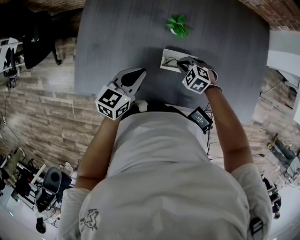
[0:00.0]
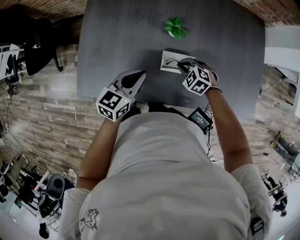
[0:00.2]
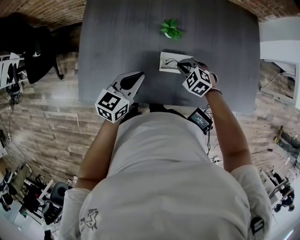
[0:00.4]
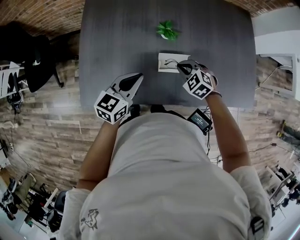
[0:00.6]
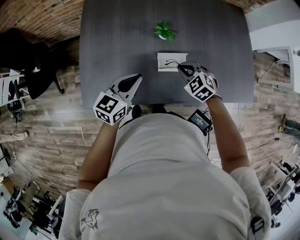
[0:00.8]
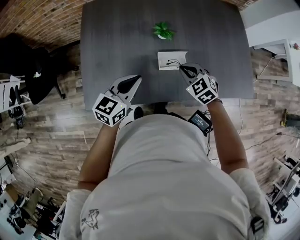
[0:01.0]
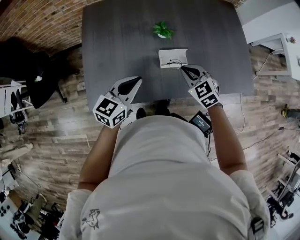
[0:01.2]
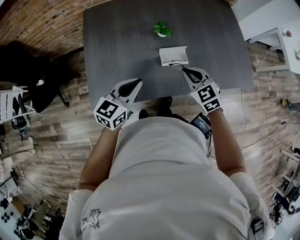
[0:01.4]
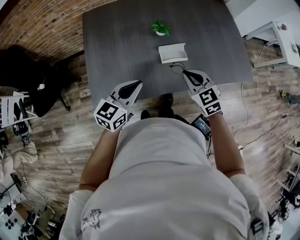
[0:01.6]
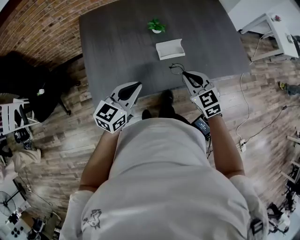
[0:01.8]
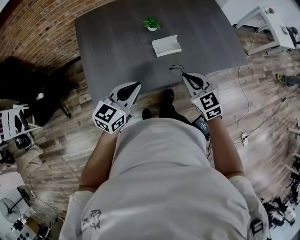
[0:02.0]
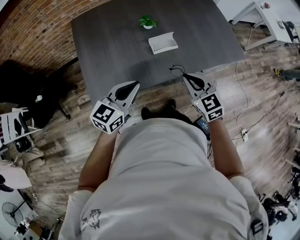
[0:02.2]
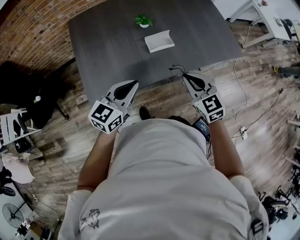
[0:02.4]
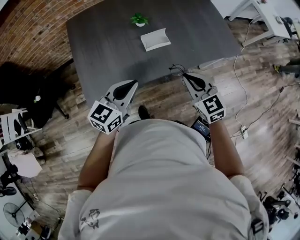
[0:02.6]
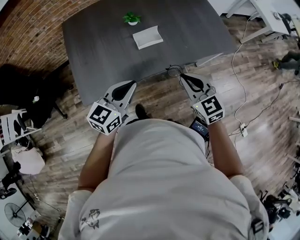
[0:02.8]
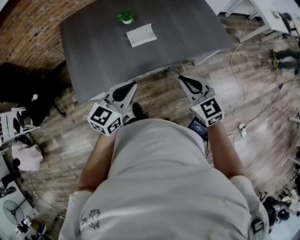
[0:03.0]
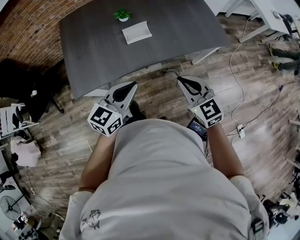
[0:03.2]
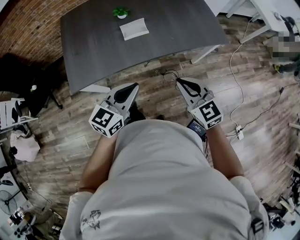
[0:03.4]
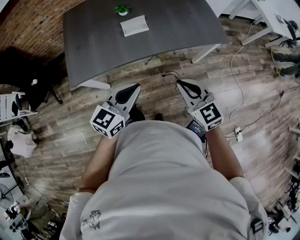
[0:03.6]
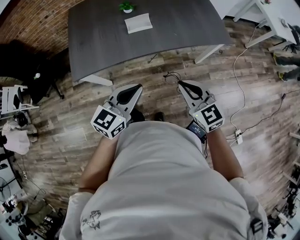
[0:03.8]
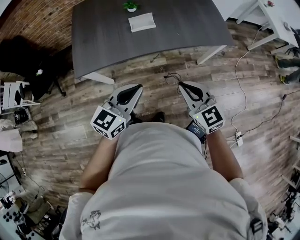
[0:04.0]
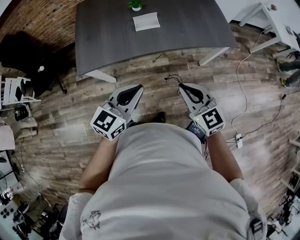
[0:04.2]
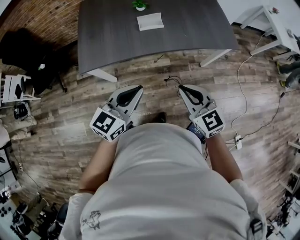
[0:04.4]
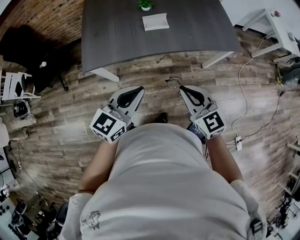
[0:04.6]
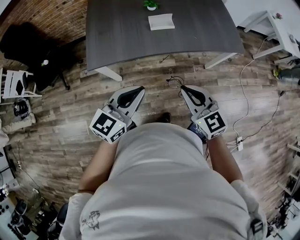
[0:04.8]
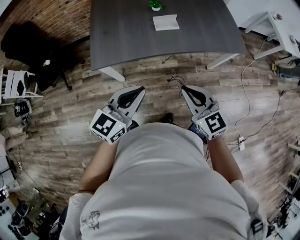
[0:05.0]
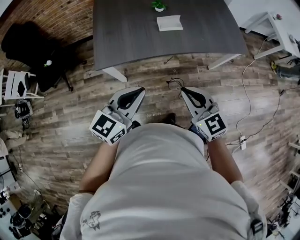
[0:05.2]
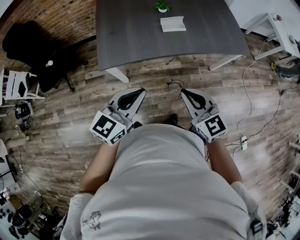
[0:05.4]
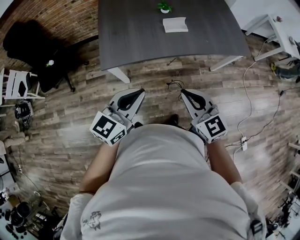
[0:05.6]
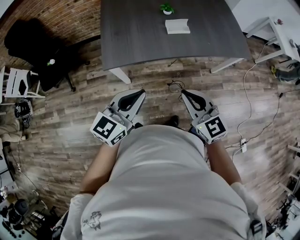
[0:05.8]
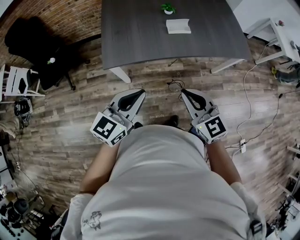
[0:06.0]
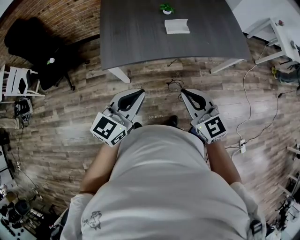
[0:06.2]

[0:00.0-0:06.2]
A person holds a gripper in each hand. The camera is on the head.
0:00.0 to 0:01.6: The right gripper travels upward by approximately 20 cm, and tilts its fingers about 30 degrees upward; the left gripper ends up some 15 cm from where it was, and turns by approximately 20 degrees.
0:01.6 to 0:03.2: The left gripper moves to the right and backward, some 20 cm, while the right gripper goes some 25 cm backward and to the right.
0:03.2 to 0:04.6: The grippers both shift backward by some 10 cm.
0:04.6 to 0:06.2: Both grippers travel together to the left, approximately 15 cm.

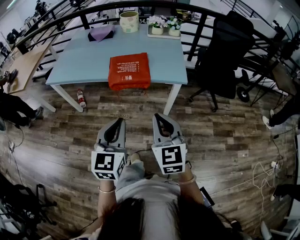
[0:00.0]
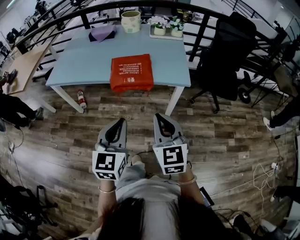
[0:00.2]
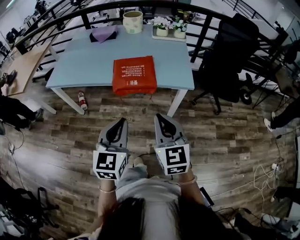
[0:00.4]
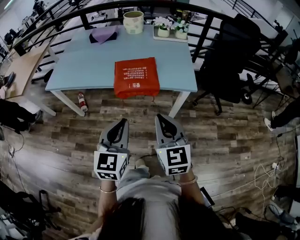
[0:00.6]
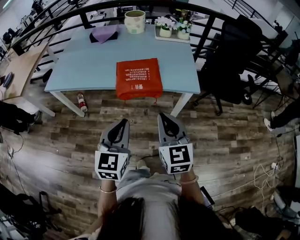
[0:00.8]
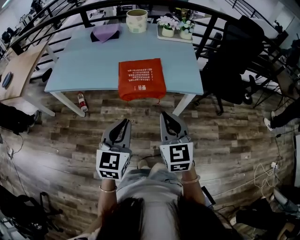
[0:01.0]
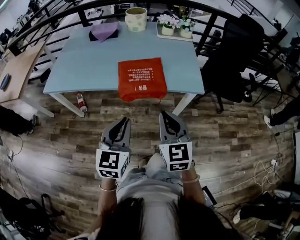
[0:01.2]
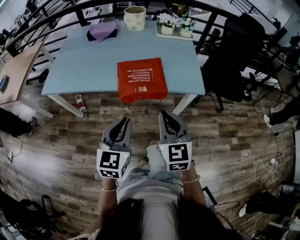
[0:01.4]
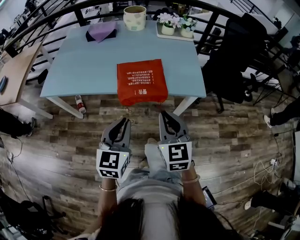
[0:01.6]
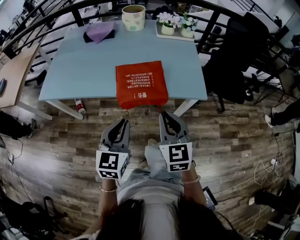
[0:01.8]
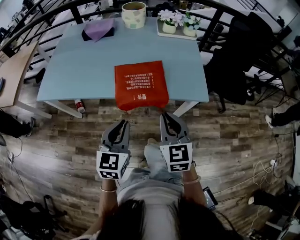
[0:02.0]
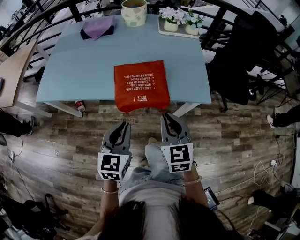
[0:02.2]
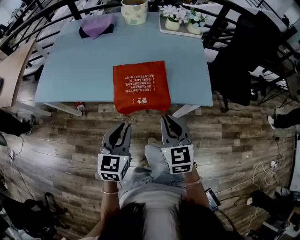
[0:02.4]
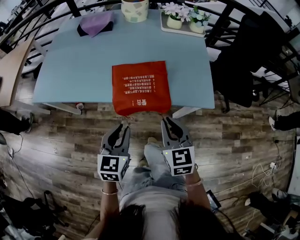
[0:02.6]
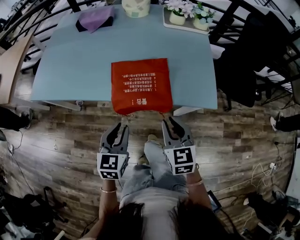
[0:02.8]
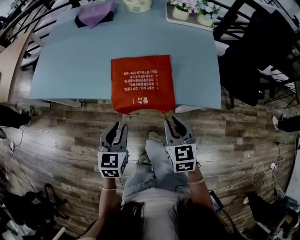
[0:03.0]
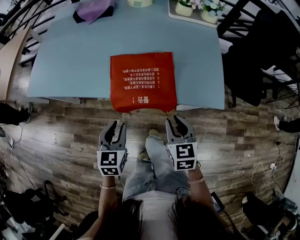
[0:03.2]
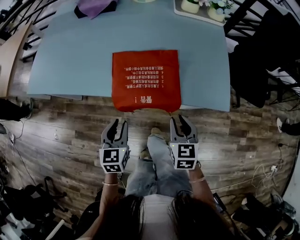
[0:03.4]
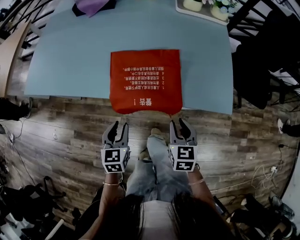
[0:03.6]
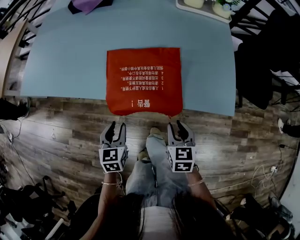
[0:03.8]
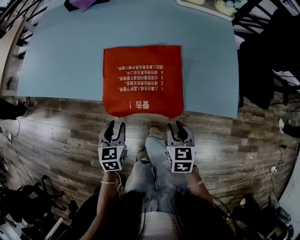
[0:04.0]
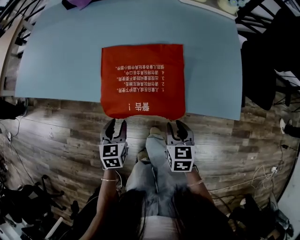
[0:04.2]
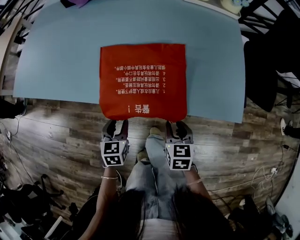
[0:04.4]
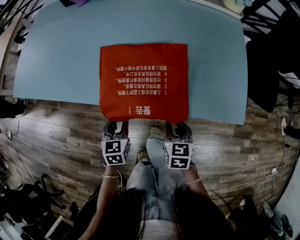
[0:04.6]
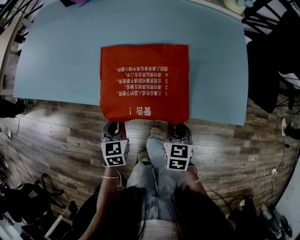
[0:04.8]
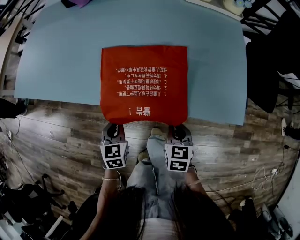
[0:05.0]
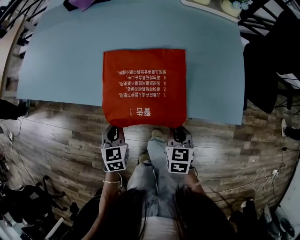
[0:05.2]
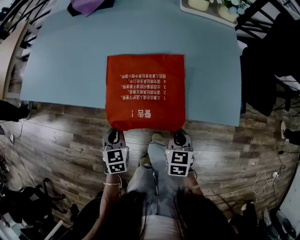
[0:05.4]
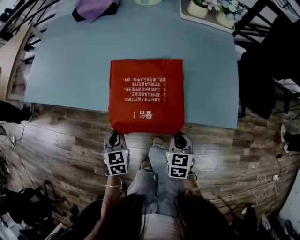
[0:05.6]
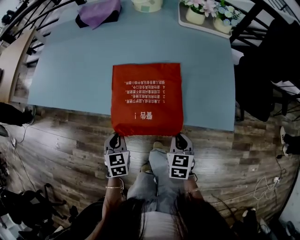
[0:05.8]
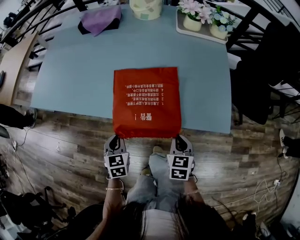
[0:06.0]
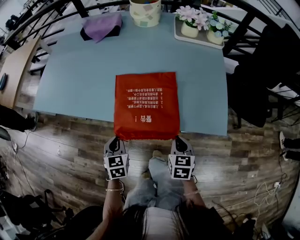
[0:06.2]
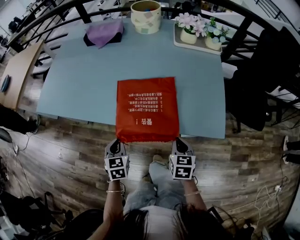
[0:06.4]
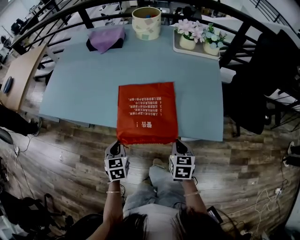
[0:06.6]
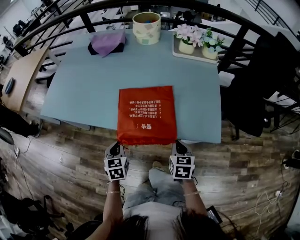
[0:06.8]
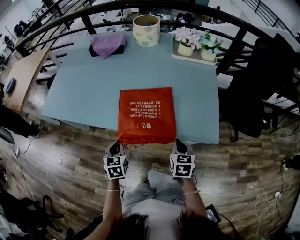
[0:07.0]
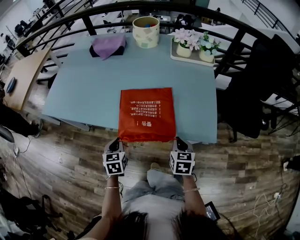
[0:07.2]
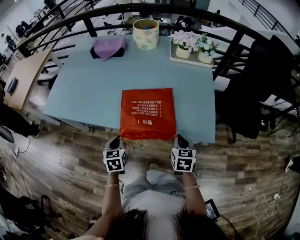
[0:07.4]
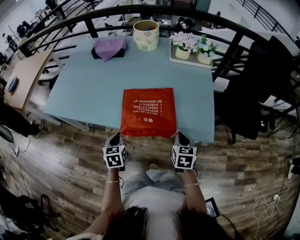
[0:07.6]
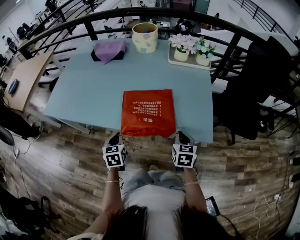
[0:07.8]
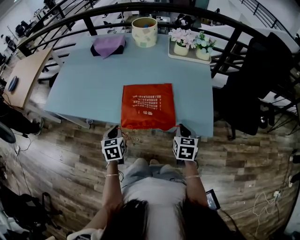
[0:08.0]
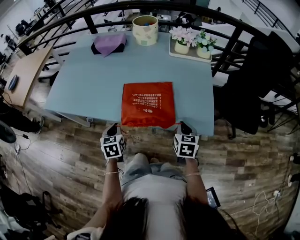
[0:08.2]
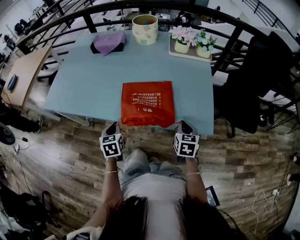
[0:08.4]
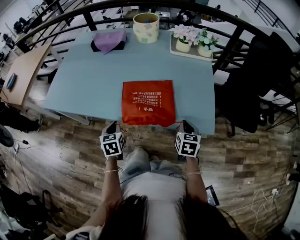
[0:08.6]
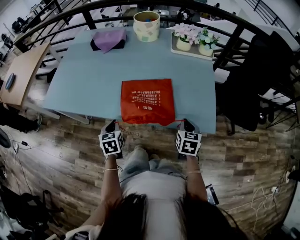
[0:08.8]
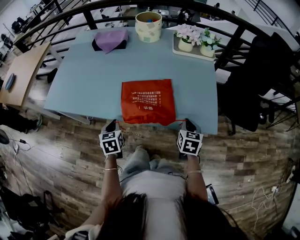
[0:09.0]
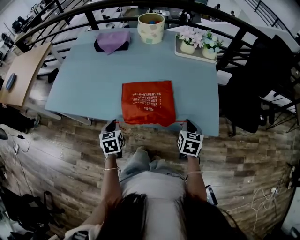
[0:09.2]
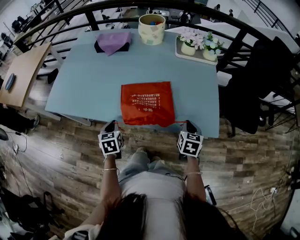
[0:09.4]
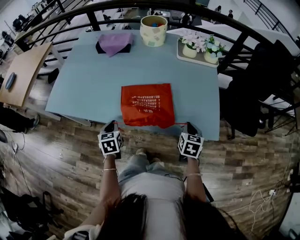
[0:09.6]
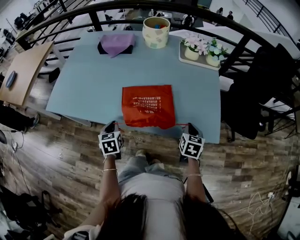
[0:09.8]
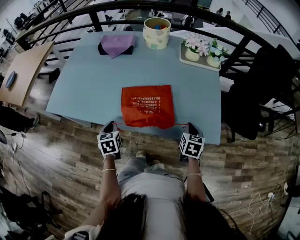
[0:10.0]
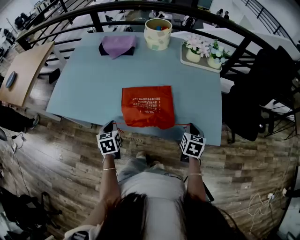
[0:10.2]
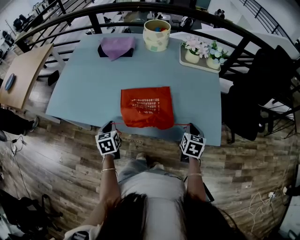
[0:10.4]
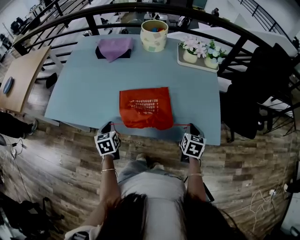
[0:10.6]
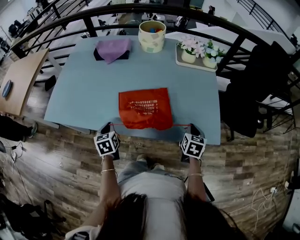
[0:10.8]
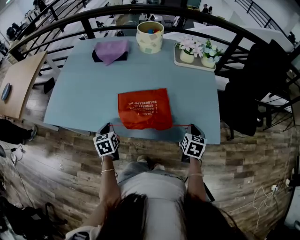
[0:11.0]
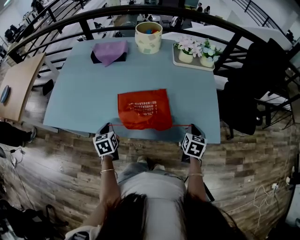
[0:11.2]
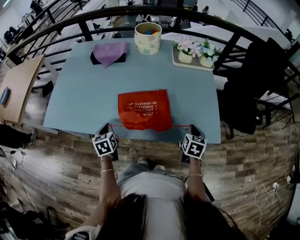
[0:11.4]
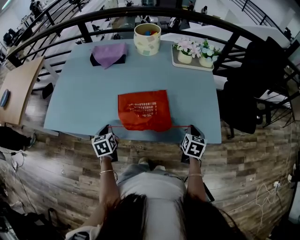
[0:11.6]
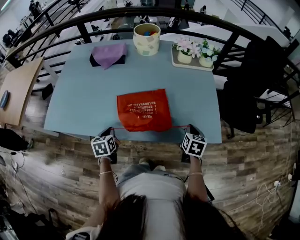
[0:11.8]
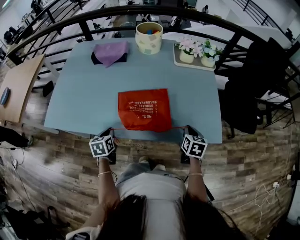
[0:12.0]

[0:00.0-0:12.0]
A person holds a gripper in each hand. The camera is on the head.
0:00.0 to 0:01.6: Both grippers travel together forward and to the left, roughly 20 cm.
0:01.6 to 0:03.0: Both grippers travel together downward and forward, about 20 cm.
0:03.0 to 0:04.4: The grippers both shift downward by approximately 20 cm.
0:04.4 to 0:06.0: The grippers both shift upward by approximately 10 cm. The left gripper closes up; the right gripper closes up.
0:06.0 to 0:07.6: The left gripper is displaced upward by some 5 cm. Meanwhile the right gripper goes about 10 cm upward and to the right.
0:07.6 to 0:09.0: The left gripper ends up approximately 5 cm from where it was.
0:09.0 to 0:10.4: The left gripper moves to the left, roughly 5 cm.
0:10.4 to 0:12.0: The grippers stay close to where they were, moving slightly.

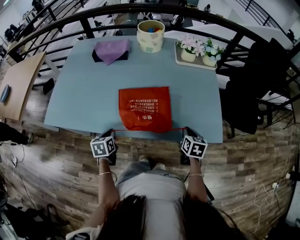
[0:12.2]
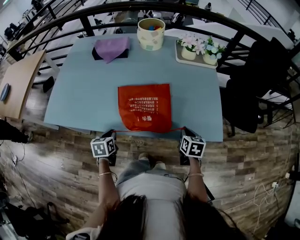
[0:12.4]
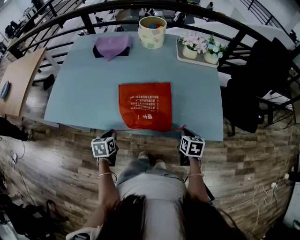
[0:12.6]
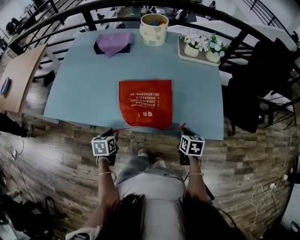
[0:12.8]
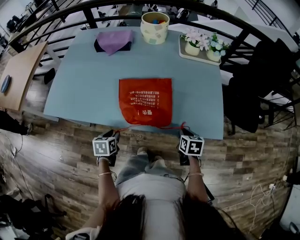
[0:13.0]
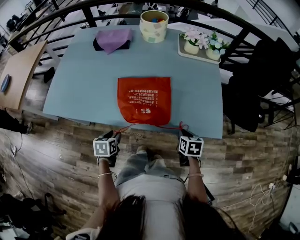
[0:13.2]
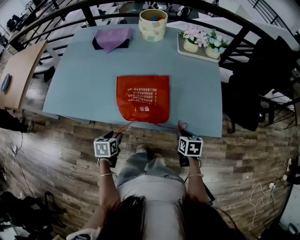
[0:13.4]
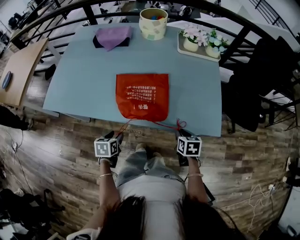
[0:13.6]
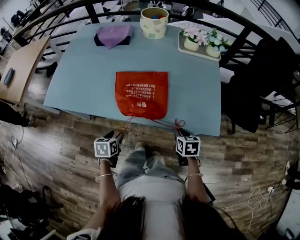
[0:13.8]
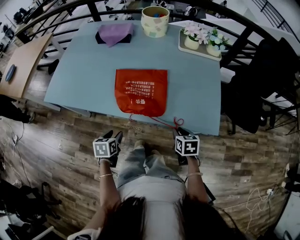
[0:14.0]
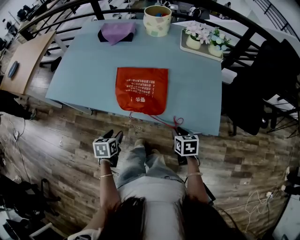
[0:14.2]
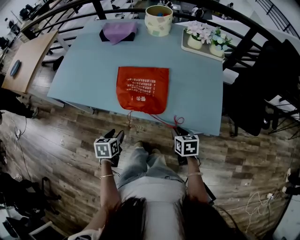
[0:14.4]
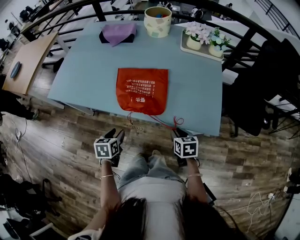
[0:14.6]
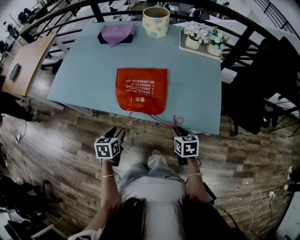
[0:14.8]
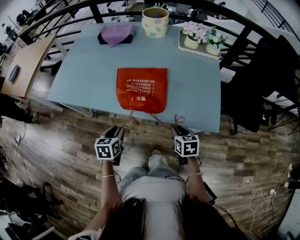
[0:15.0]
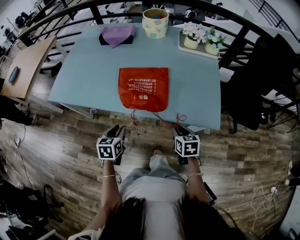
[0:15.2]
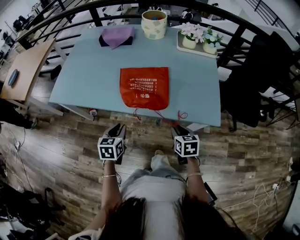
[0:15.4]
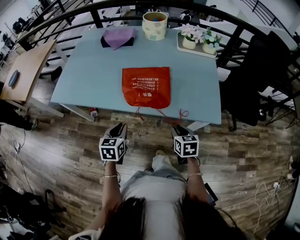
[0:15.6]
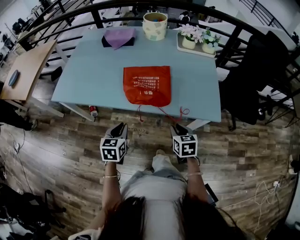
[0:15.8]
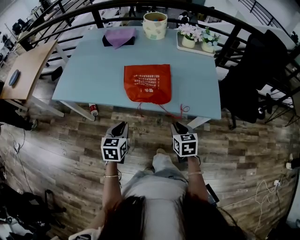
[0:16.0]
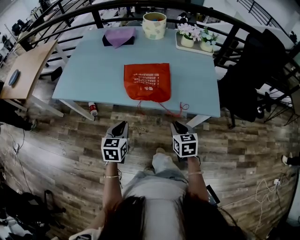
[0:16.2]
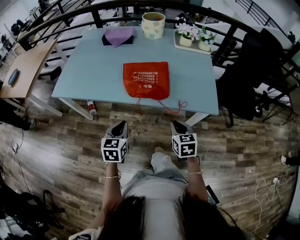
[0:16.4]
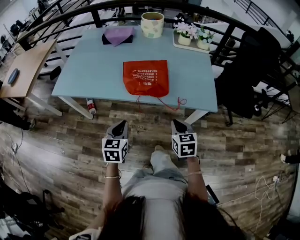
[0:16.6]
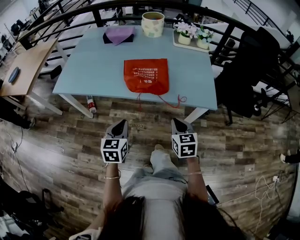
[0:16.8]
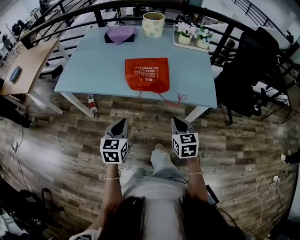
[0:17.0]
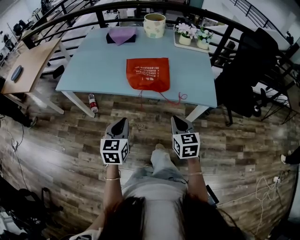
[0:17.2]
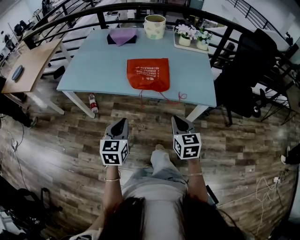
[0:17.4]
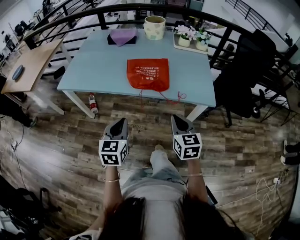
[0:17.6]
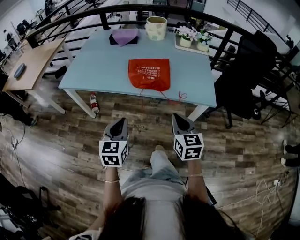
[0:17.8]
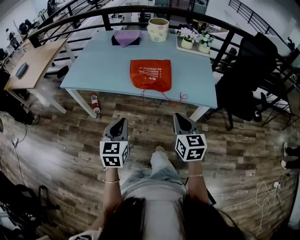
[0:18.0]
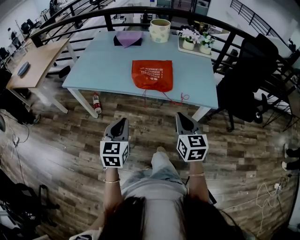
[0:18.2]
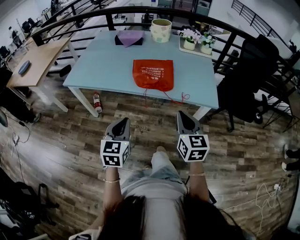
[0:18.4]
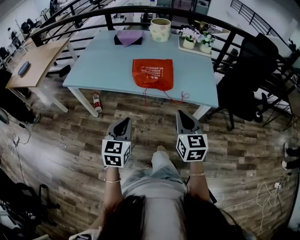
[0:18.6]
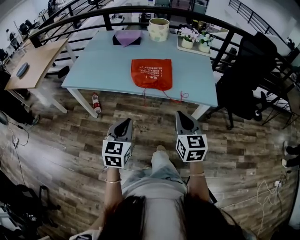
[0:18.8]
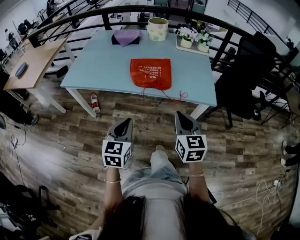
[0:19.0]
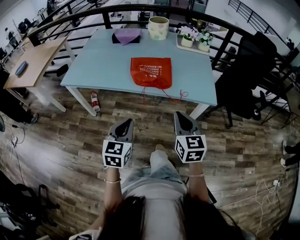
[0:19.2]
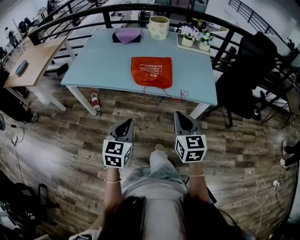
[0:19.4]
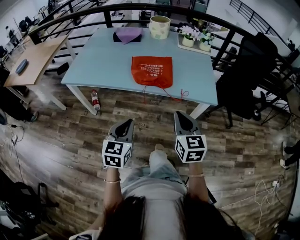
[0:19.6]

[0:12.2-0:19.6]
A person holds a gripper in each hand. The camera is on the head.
0:12.2 to 0:13.6: The left gripper moves backward and to the right, about 10 cm, and opens its fingers. The right gripper shifts about 5 cm backward.
0:13.6 to 0:15.2: The left gripper moves upward, about 5 cm. Meanwhile the right gripper changes place by approximately 5 cm.
0:15.2 to 0:16.6: The right gripper moves backward, upward and to the left, approximately 15 cm. The left gripper is displaced backward and upward by some 10 cm, and closes up.
0:16.6 to 0:18.2: The right gripper heads upward and backward, covering roughly 15 cm. Meanwhile the left gripper travels backward and upward by approximately 10 cm.
0:18.2 to 0:19.6: The grippers make only small movements.
